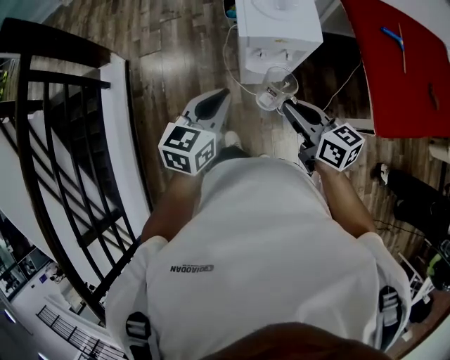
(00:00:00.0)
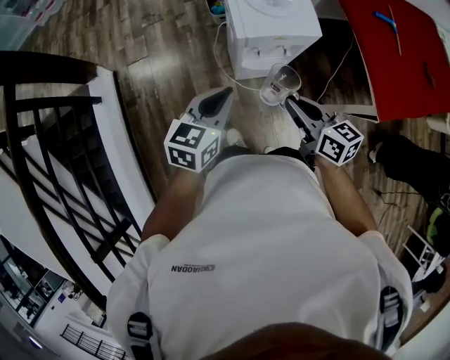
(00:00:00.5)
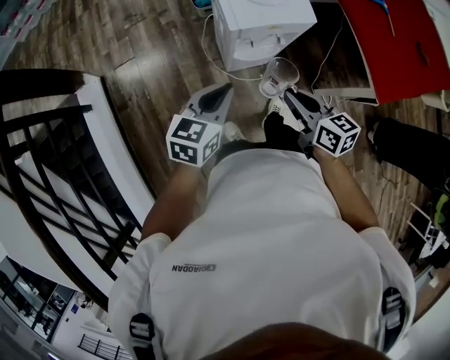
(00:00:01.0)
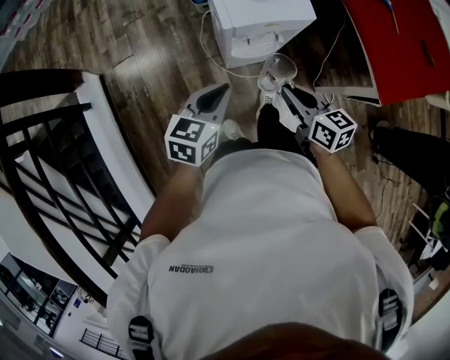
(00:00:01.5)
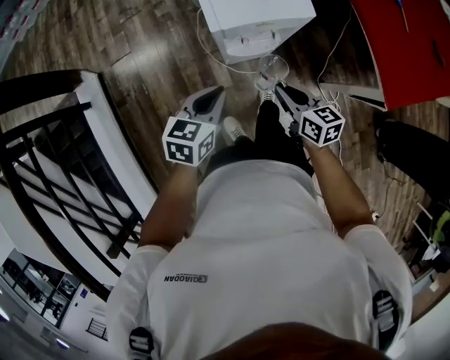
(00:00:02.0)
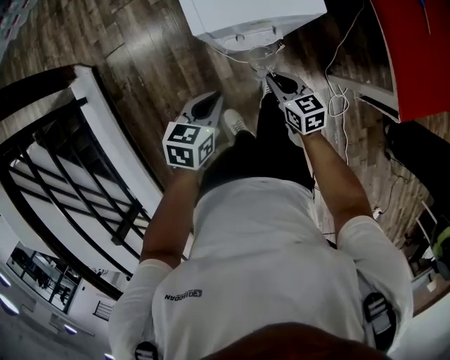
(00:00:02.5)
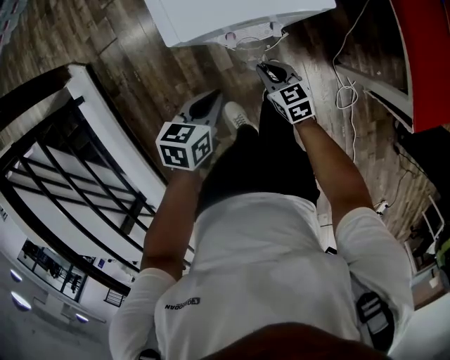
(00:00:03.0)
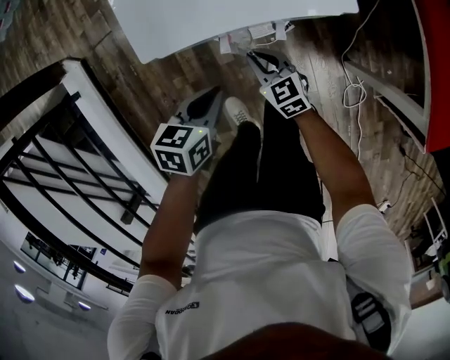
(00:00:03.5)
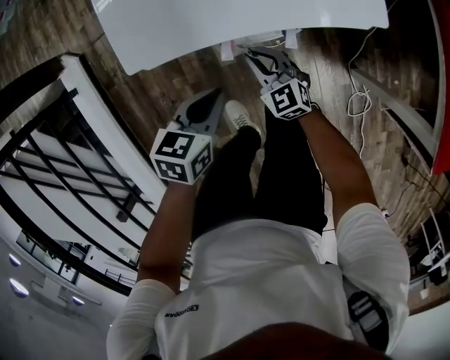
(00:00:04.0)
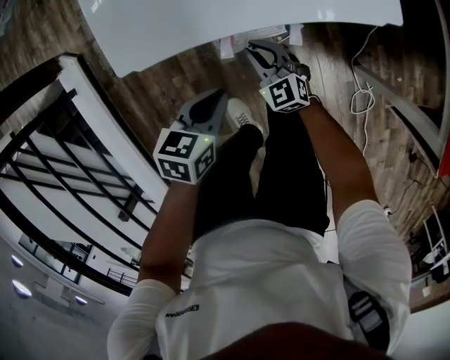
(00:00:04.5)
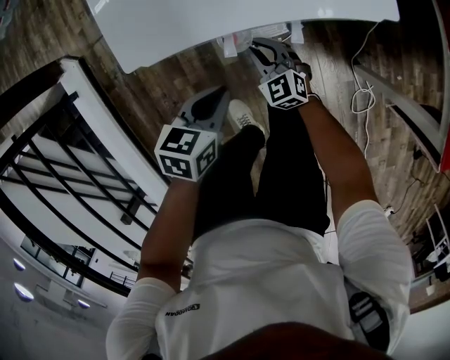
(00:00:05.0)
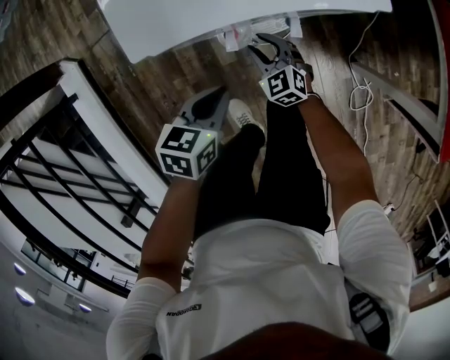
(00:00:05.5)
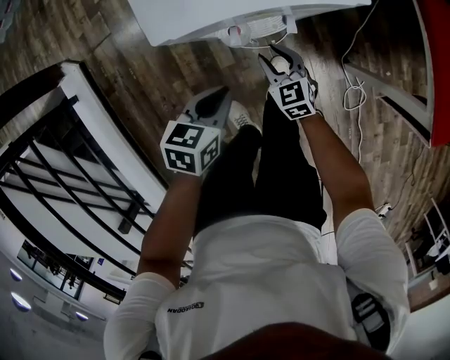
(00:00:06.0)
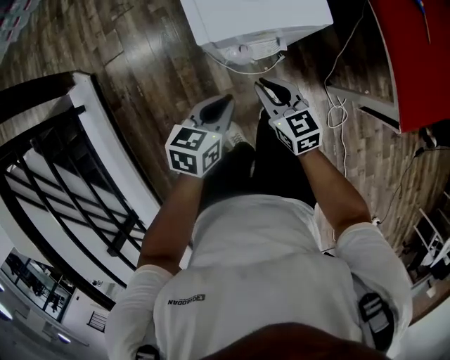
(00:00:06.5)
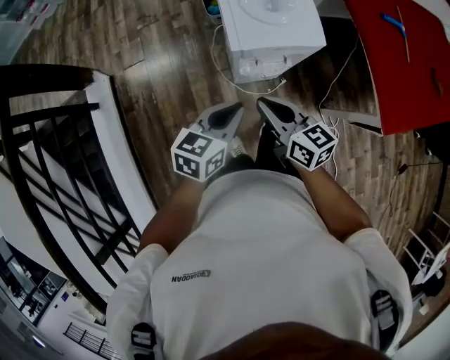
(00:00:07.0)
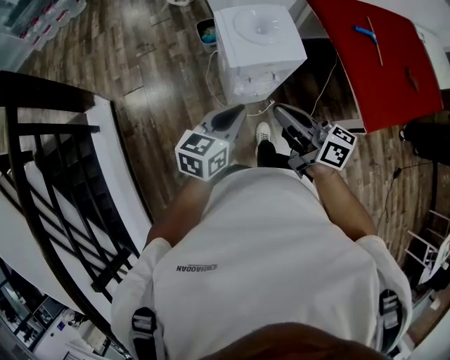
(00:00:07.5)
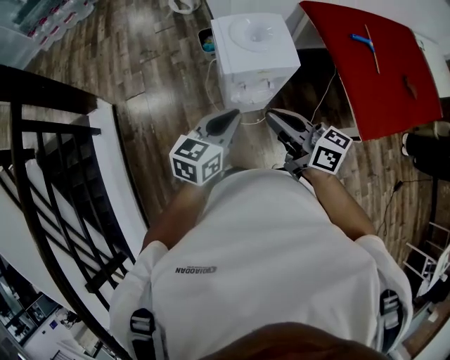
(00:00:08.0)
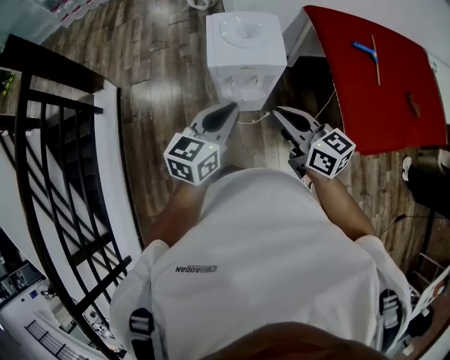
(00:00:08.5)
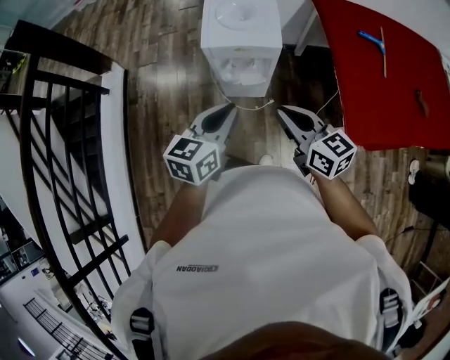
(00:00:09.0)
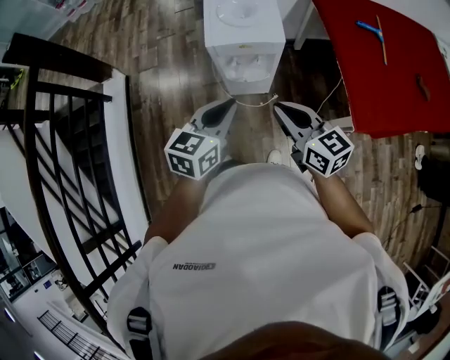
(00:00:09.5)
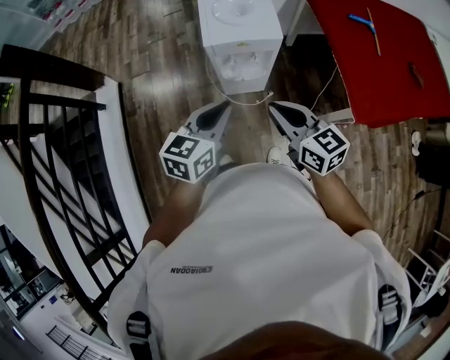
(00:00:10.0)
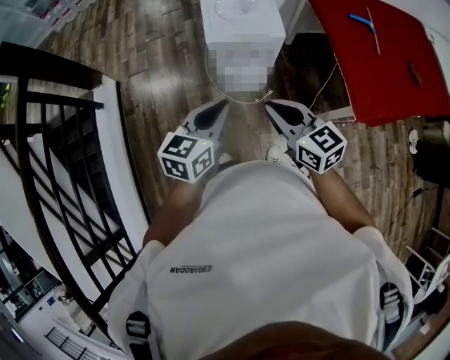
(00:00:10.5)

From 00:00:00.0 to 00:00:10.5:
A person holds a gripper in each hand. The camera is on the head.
From 00:00:00.0 to 00:00:02.0: The left gripper heads downward and forward, covering approximately 15 cm. The right gripper goes some 20 cm downward.
From 00:00:02.0 to 00:00:04.0: The left gripper moves downward, about 20 cm; the right gripper goes roughly 25 cm downward and forward, and rolls counterclockwise, seen from behind, by roughly 40 degrees.
From 00:00:04.0 to 00:00:06.5: The right gripper shifts roughly 20 cm upward, and turns by some 20 degrees. The left gripper goes about 10 cm upward.
From 00:00:06.5 to 00:00:08.5: The grippers both shift upward by about 30 cm. The left gripper changes its angle by approximately 30 degrees. The right gripper swivels approximately 30 degrees.
From 00:00:08.5 to 00:00:10.5: The grippers both shift backward by about 5 cm.

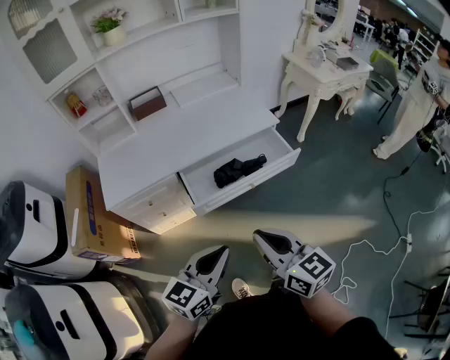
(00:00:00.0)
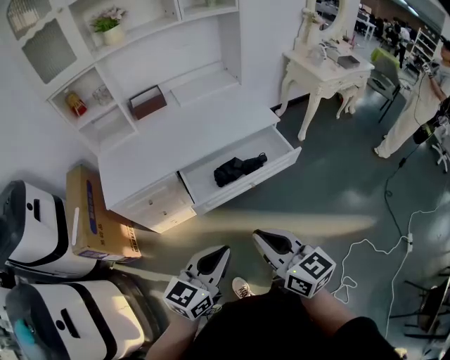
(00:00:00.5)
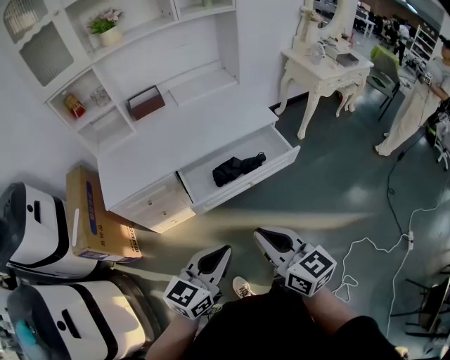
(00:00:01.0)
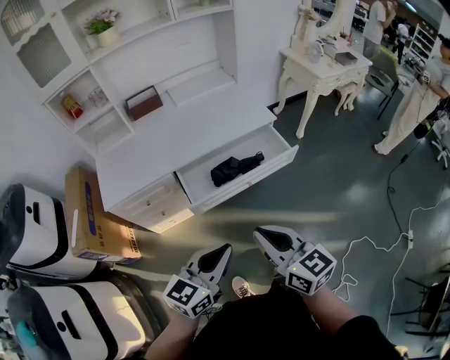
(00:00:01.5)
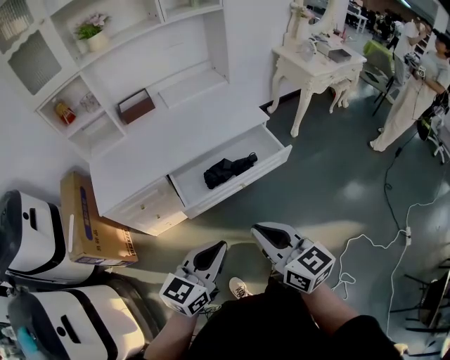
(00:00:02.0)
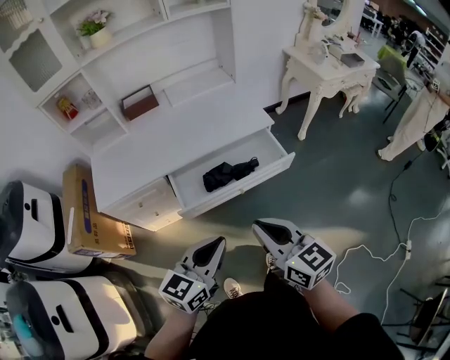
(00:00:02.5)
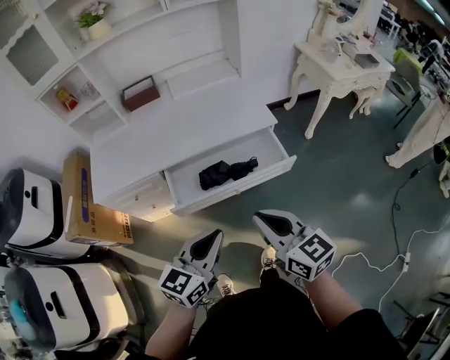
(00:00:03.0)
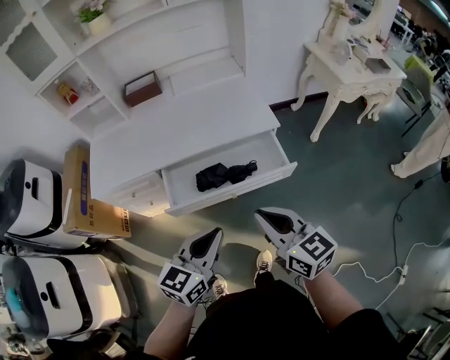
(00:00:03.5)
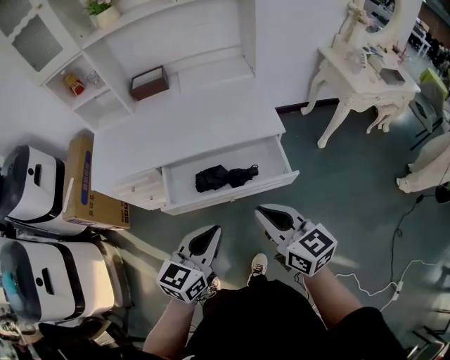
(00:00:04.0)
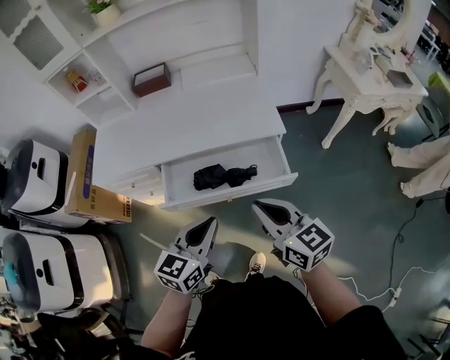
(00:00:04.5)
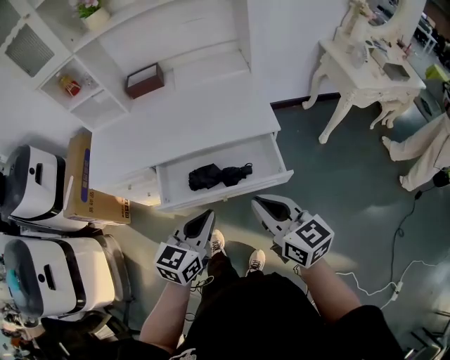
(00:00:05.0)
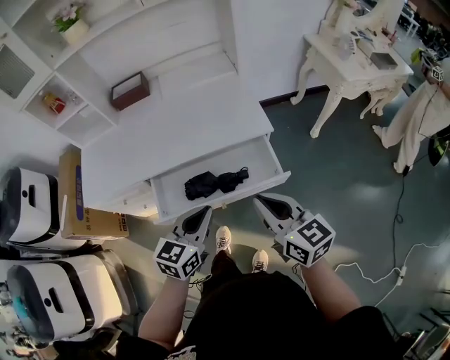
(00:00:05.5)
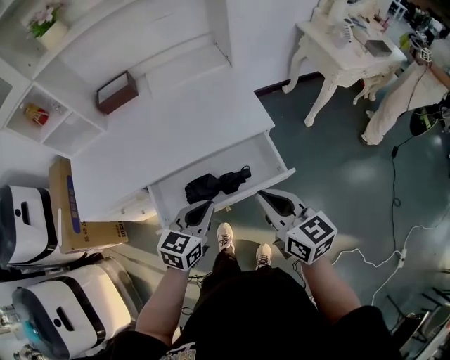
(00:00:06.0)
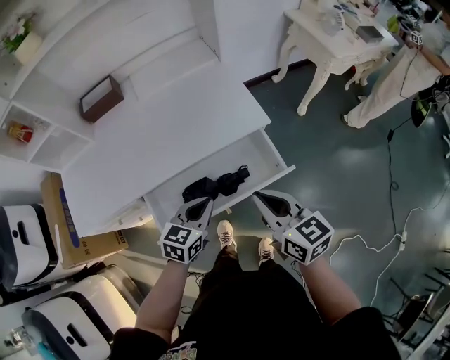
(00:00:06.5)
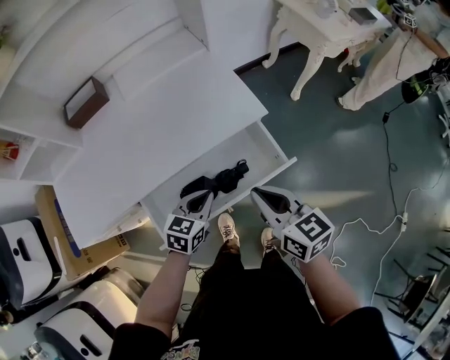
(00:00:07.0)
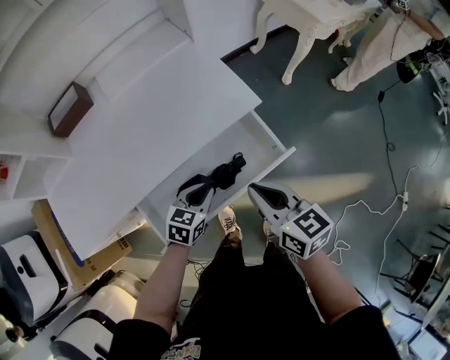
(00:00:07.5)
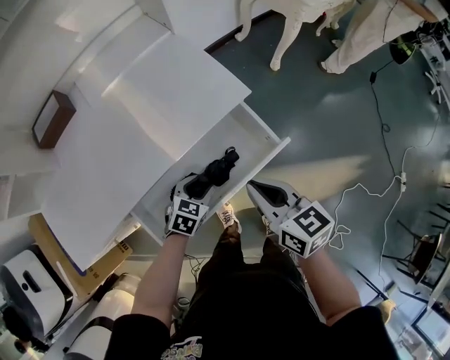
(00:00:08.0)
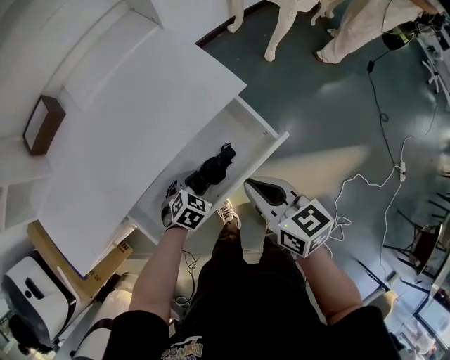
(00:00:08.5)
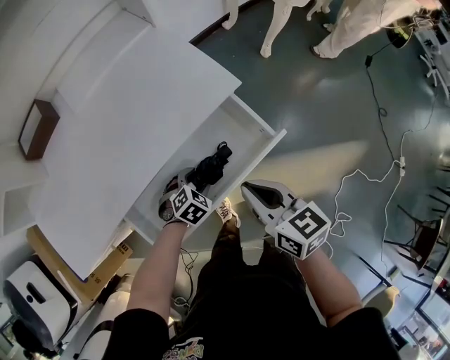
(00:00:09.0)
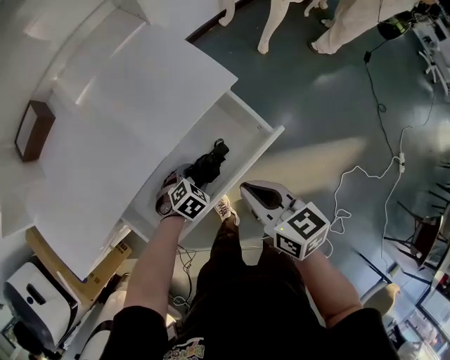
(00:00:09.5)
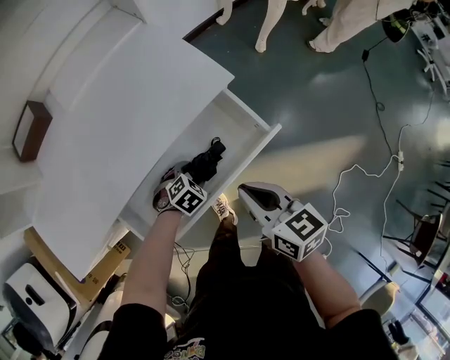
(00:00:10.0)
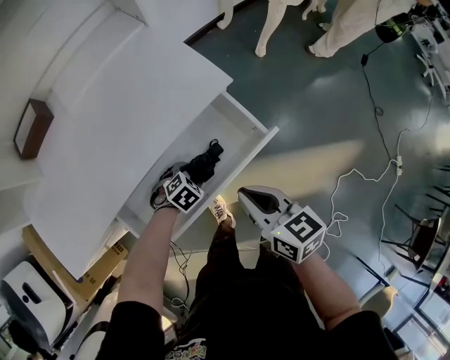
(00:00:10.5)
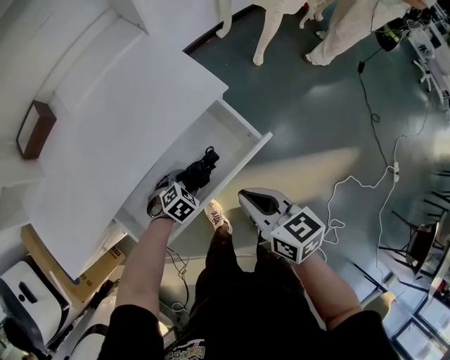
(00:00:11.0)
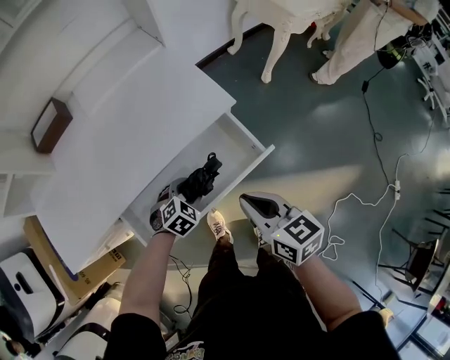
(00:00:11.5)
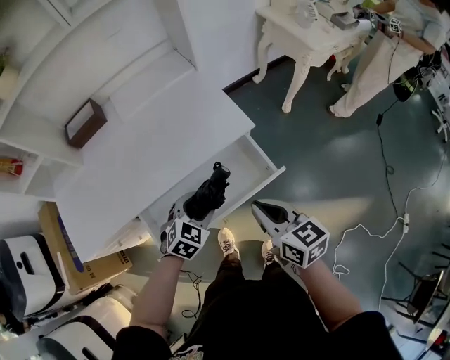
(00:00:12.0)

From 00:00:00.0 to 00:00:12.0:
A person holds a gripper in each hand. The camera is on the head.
From 00:00:00.0 to 00:00:02.0: The grippers stay close to where they were, moving slightly.
From 00:00:02.0 to 00:00:04.0: The right gripper travels forward and to the right by some 20 cm. The left gripper heads to the right and forward, covering roughly 20 cm, and rotates about 20 degrees.
From 00:00:04.0 to 00:00:06.0: The right gripper is displaced forward by some 10 cm. The left gripper is displaced forward and downward by about 15 cm.
From 00:00:06.0 to 00:00:08.0: The left gripper shifts approximately 20 cm downward and forward, rotates some 40 degrees, and opens its fingers, while the right gripper travels downward by some 10 cm, and rotates some 20 degrees.
From 00:00:08.0 to 00:00:10.0: The right gripper moves some 5 cm; the left gripper shifts roughly 10 cm downward, and swivels about 30 degrees.
From 00:00:10.0 to 00:00:12.0: The right gripper shifts about 10 cm upward. The left gripper moves upward, about 20 cm, and changes its angle by about 30 degrees.

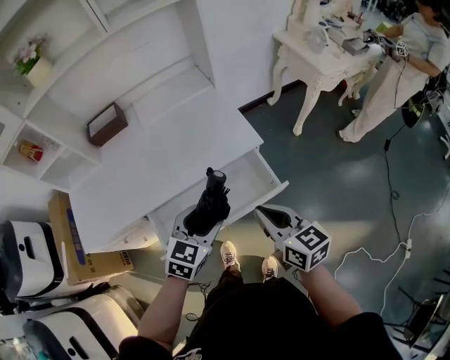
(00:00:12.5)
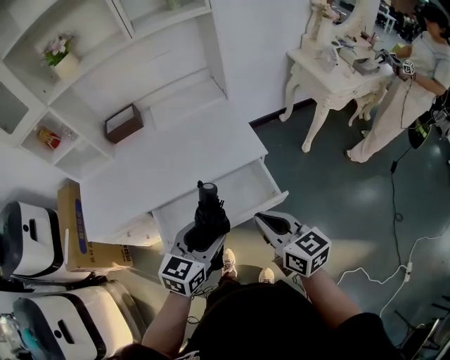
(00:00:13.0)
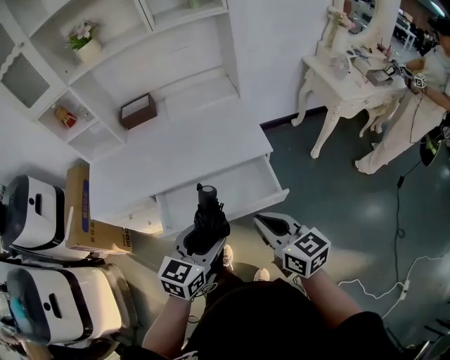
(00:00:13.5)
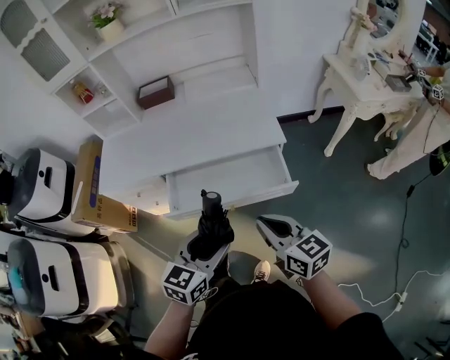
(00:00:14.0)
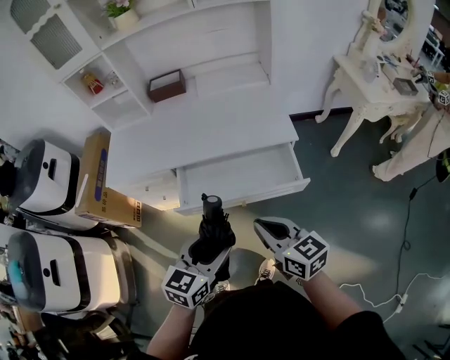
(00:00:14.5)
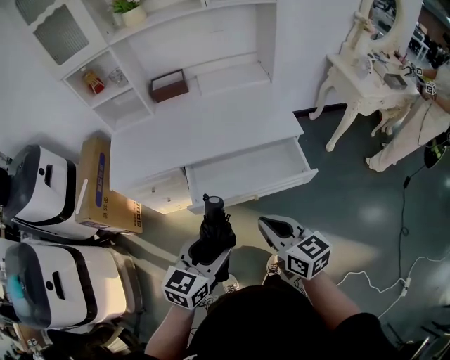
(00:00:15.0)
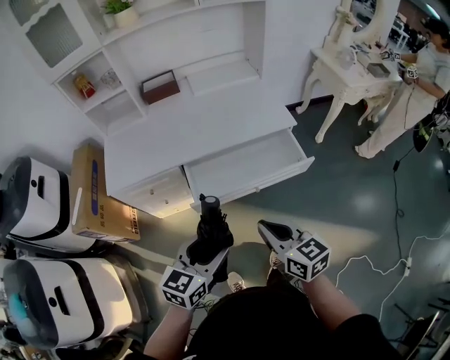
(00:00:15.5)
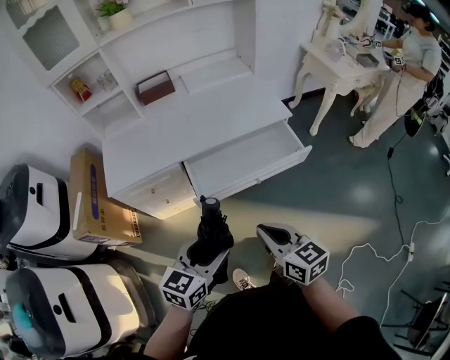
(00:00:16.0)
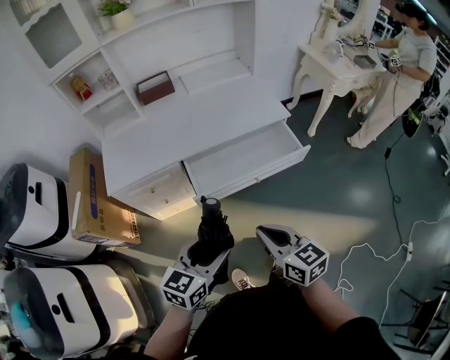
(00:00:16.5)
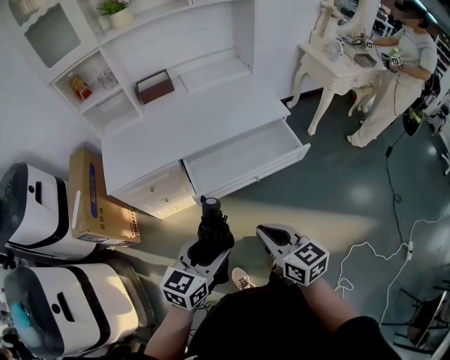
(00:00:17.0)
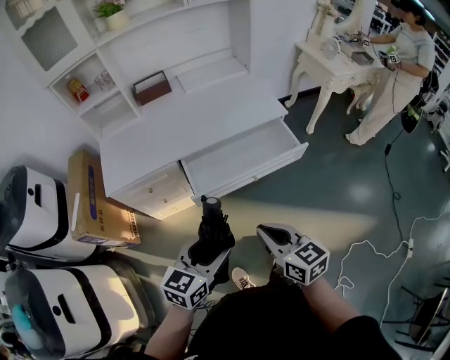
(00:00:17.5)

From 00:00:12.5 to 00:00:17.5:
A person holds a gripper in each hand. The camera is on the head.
From 00:00:12.5 to 00:00:15.0: The two grippers go some 25 cm backward and to the left. The left gripper swivels roughly 20 degrees.
From 00:00:15.0 to 00:00:17.5: The right gripper goes approximately 15 cm backward and to the left. The left gripper travels to the left and backward by some 10 cm.
